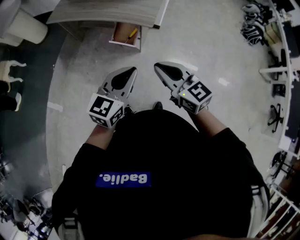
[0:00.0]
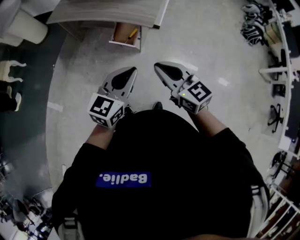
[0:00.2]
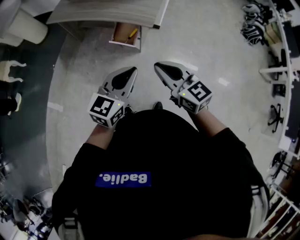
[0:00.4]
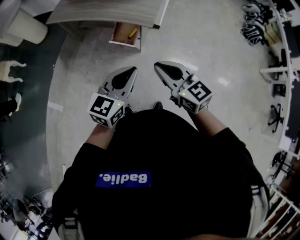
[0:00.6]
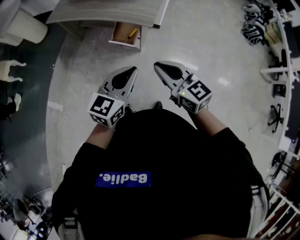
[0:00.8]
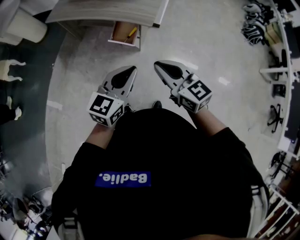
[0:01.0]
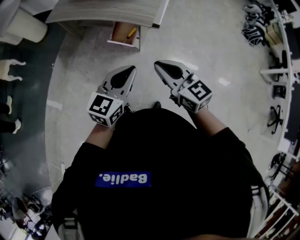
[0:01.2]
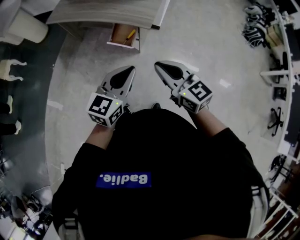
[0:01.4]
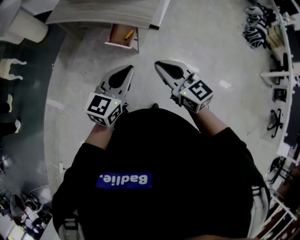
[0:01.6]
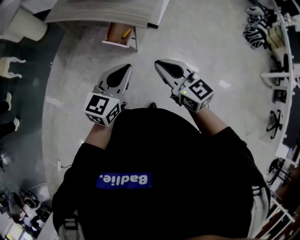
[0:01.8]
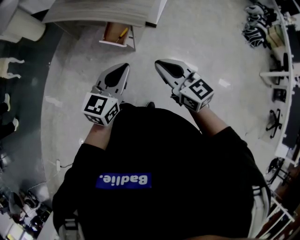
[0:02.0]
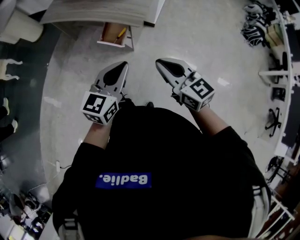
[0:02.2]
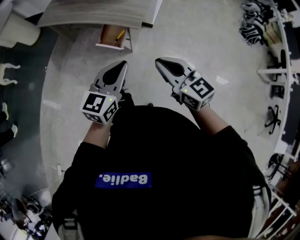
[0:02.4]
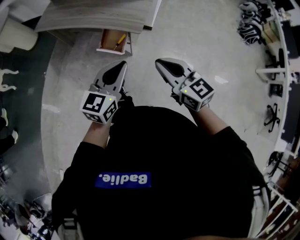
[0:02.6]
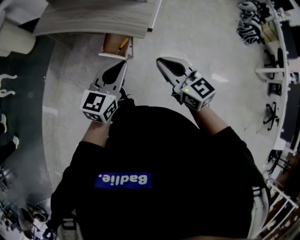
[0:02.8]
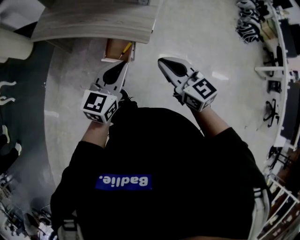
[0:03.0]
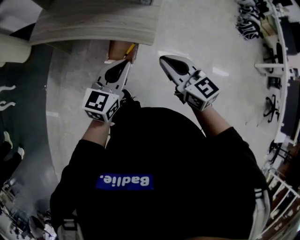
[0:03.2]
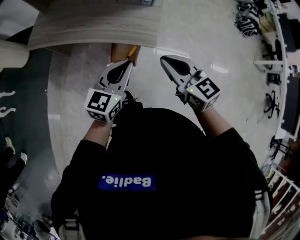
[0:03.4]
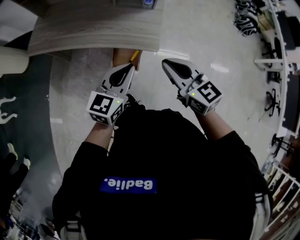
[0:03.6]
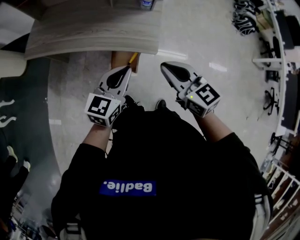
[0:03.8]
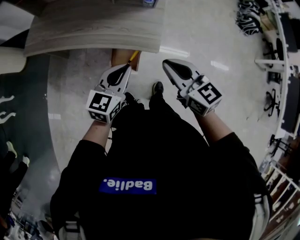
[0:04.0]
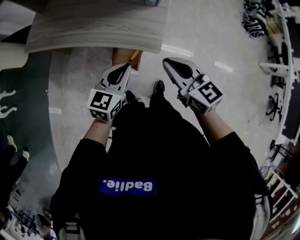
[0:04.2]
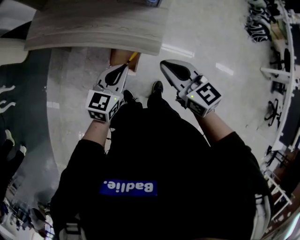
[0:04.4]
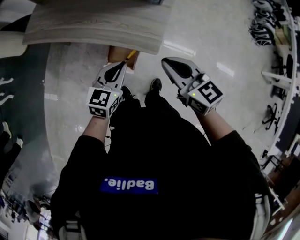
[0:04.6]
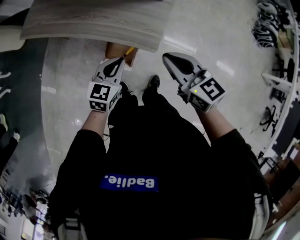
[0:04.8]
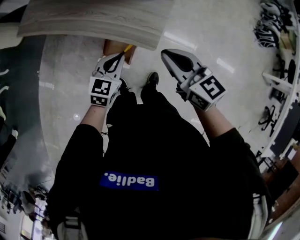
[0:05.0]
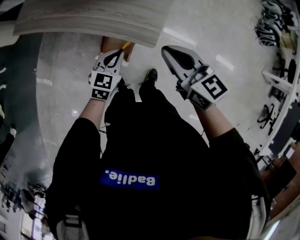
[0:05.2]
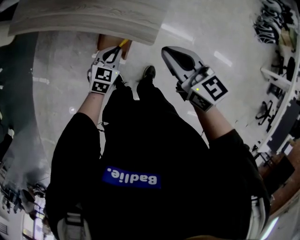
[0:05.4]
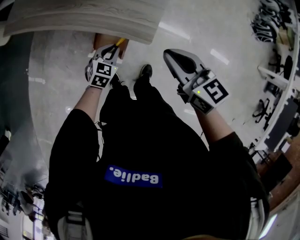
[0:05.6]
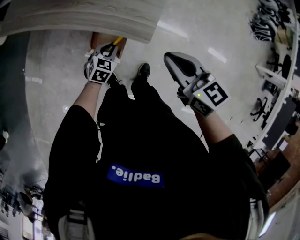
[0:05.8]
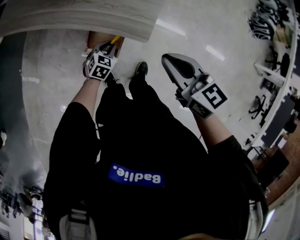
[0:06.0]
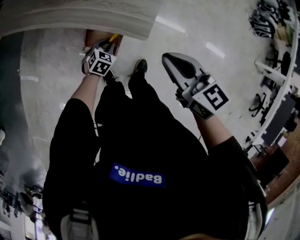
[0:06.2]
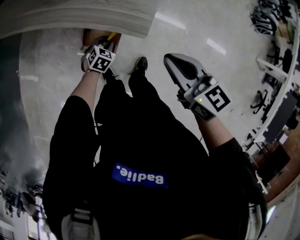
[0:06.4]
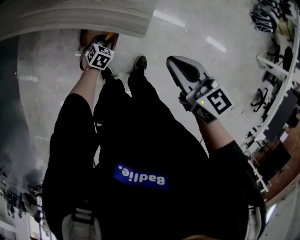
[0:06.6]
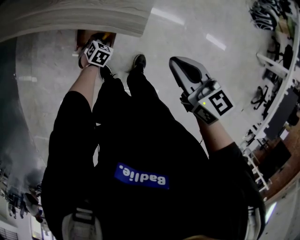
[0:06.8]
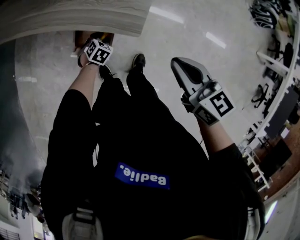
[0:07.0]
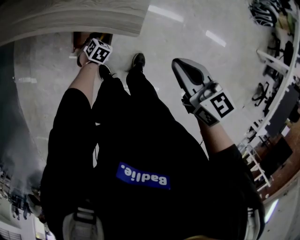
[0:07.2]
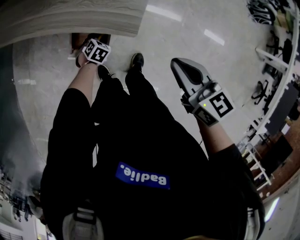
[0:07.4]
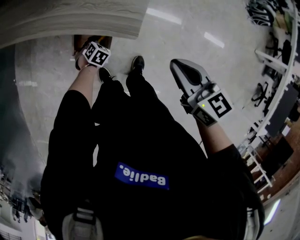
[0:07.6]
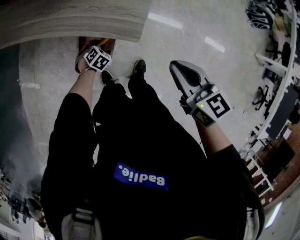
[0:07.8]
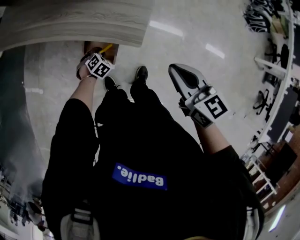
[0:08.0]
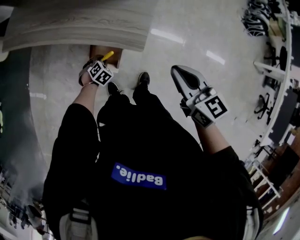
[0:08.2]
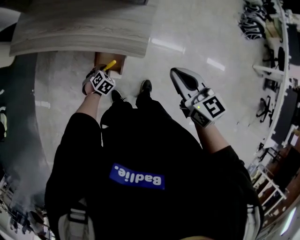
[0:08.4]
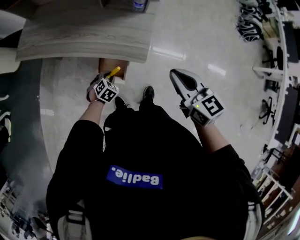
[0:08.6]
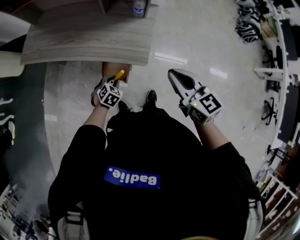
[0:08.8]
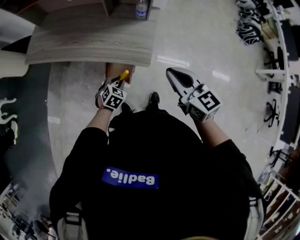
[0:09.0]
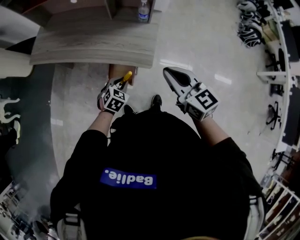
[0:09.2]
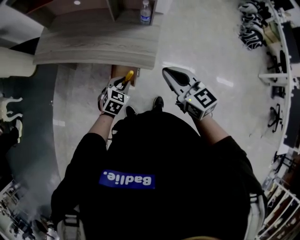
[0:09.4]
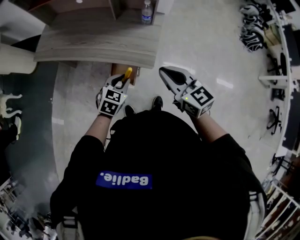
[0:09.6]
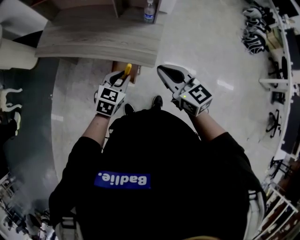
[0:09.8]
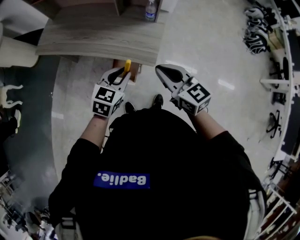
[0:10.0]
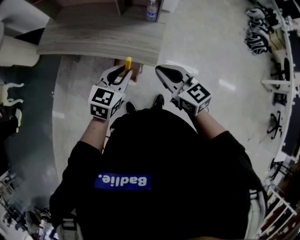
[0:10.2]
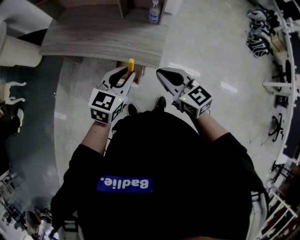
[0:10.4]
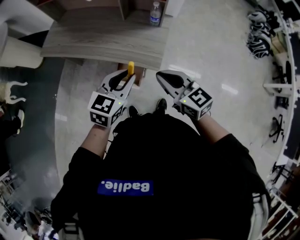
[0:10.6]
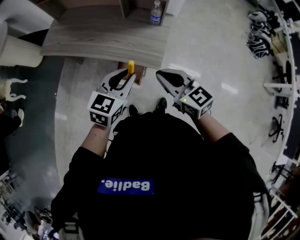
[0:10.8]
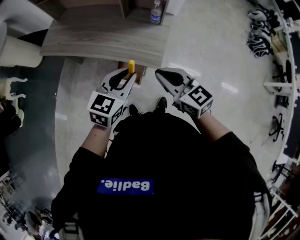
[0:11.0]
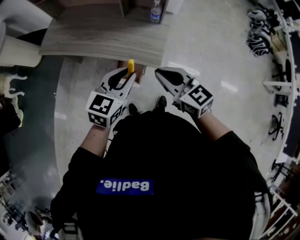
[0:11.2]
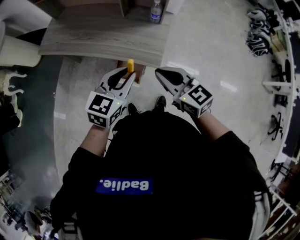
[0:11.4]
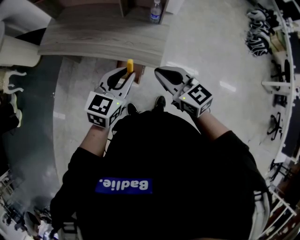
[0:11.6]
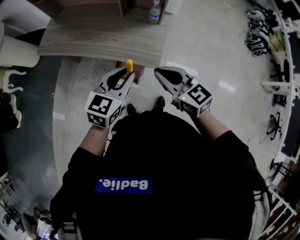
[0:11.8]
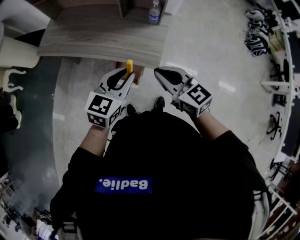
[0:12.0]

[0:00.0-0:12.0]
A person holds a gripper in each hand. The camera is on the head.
0:00.0 to 0:01.6: The right gripper heads to the right, covering some 5 cm.
0:01.6 to 0:03.0: The two grippers go some 20 cm forward.
0:03.0 to 0:04.4: The left gripper is displaced forward and downward by roughly 15 cm, while the right gripper moves forward, about 15 cm.
0:04.4 to 0:06.0: The left gripper is displaced downward by about 30 cm, and turns by roughly 30 degrees. Meanwhile the right gripper heads downward, covering about 10 cm.
0:06.0 to 0:07.6: The left gripper heads downward, covering some 10 cm, and turns by about 20 degrees, while the right gripper moves approximately 5 cm.
0:07.6 to 0:09.0: The right gripper is displaced upward by roughly 10 cm. The left gripper goes some 20 cm upward.
0:09.0 to 0:10.4: The right gripper goes roughly 5 cm to the left. Meanwhile the left gripper goes approximately 25 cm upward, and turns by approximately 30 degrees.
0:10.4 to 0:12.0: The grippers make only small movements.

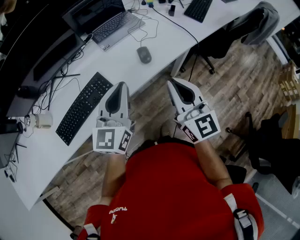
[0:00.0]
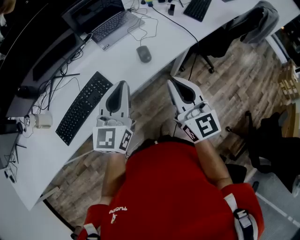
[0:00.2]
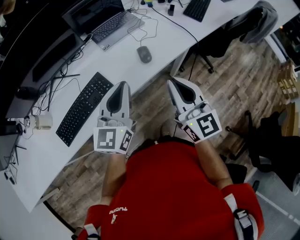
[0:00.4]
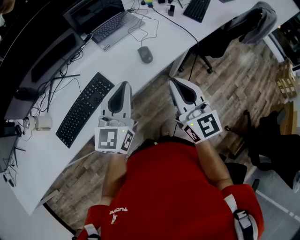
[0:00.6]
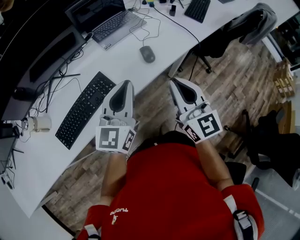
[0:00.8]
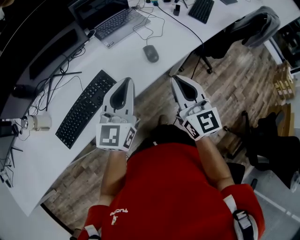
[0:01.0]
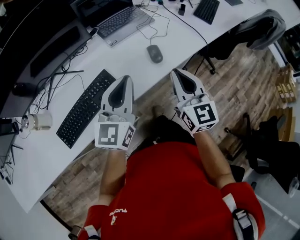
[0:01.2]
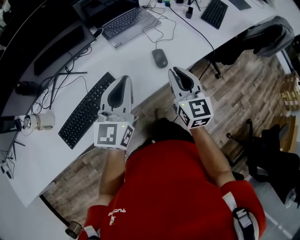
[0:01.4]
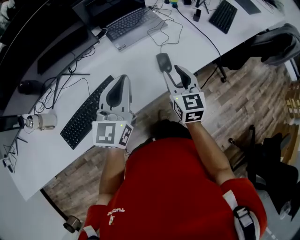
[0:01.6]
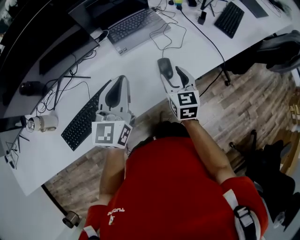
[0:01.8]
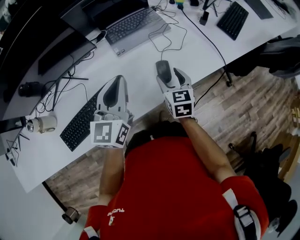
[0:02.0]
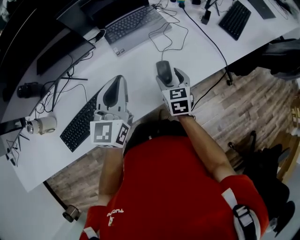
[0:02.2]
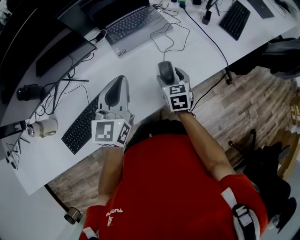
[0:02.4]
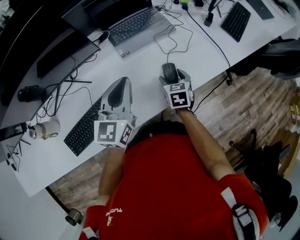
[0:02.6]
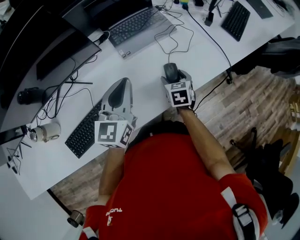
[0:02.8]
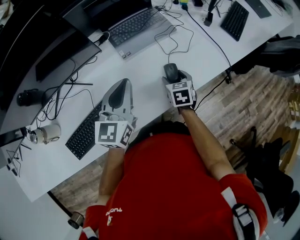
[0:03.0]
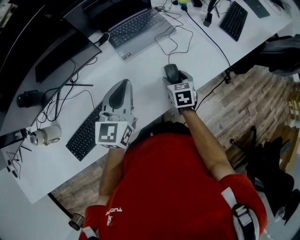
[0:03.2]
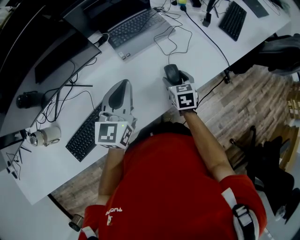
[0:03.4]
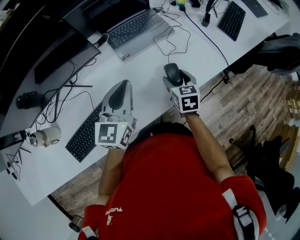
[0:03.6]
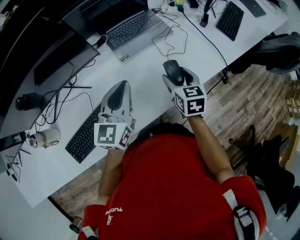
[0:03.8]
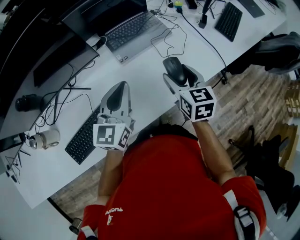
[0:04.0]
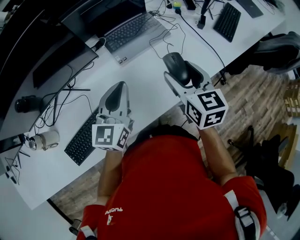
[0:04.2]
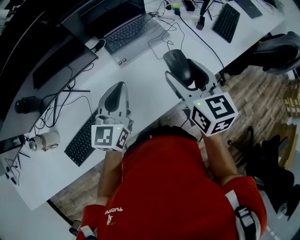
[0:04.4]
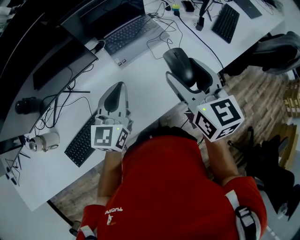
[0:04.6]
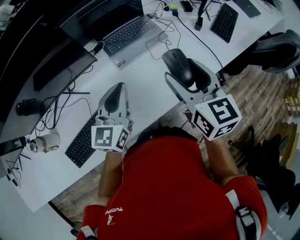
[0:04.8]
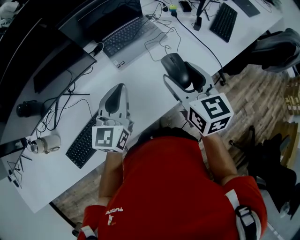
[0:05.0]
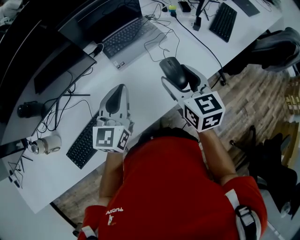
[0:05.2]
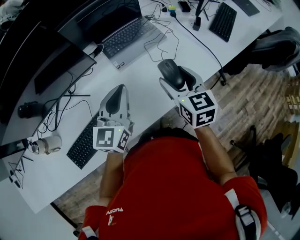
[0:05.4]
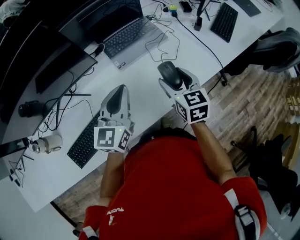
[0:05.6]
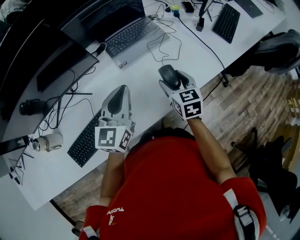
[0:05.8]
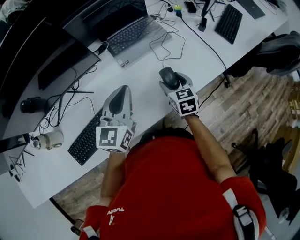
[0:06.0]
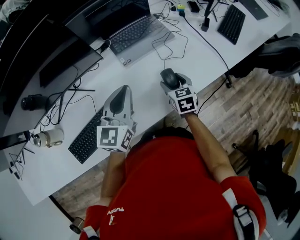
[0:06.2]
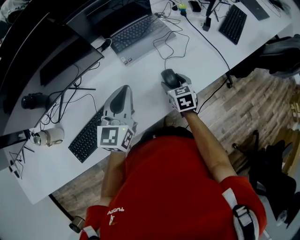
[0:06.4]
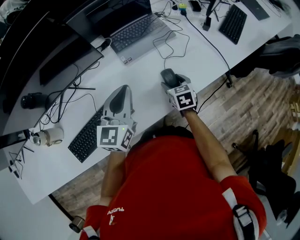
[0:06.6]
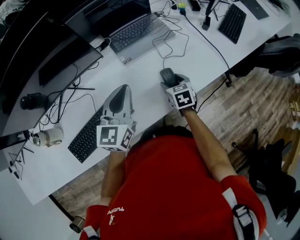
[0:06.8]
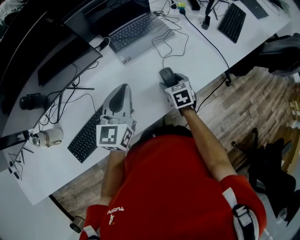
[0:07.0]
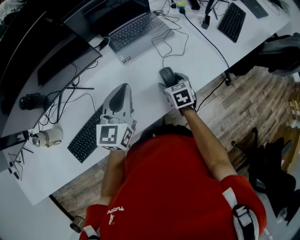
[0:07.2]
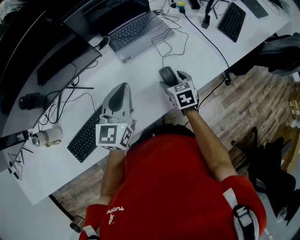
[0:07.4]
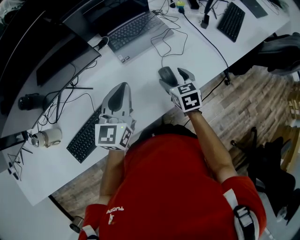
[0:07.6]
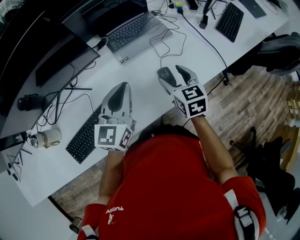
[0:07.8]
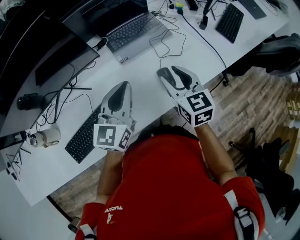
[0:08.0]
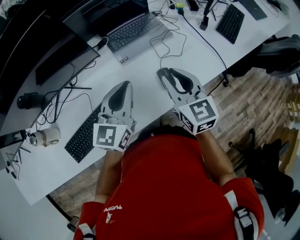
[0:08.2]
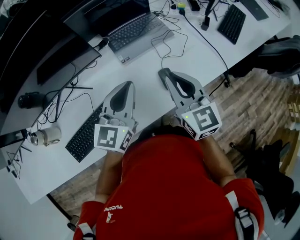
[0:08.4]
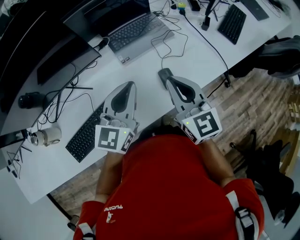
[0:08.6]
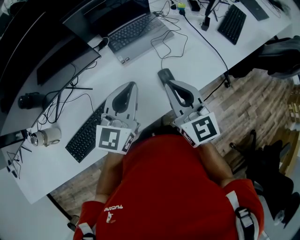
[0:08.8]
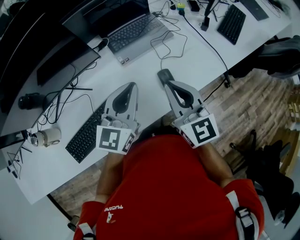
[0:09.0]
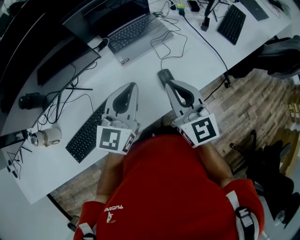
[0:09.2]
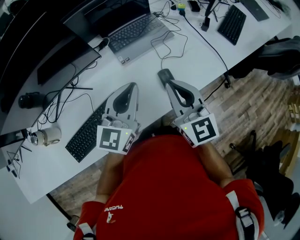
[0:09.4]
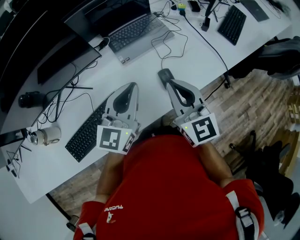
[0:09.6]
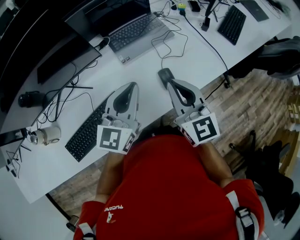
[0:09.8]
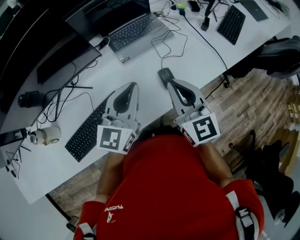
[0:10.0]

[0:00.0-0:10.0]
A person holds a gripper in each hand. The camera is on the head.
0:00.0 to 0:01.4: The left gripper is displaced forward and to the left by approximately 10 cm, while the right gripper goes approximately 15 cm forward and downward.
0:01.4 to 0:02.8: The right gripper shifts approximately 25 cm downward and forward, angles its fingers downward, by roughly 40 degrees, and opens up, while the left gripper shifts approximately 15 cm forward and downward.
0:02.8 to 0:04.2: The right gripper heads upward, covering roughly 20 cm, and turns by some 30 degrees.
0:04.2 to 0:05.8: The right gripper heads downward, covering roughly 10 cm.
0:05.8 to 0:07.2: The right gripper goes roughly 10 cm downward.
0:07.2 to 0:08.6: The left gripper shifts by about 5 cm, while the right gripper goes roughly 25 cm upward, angles its fingers upward, by roughly 40 degrees, and closes.
0:08.6 to 0:10.0: Both grippers stay put.

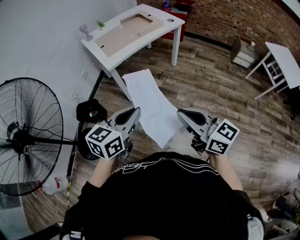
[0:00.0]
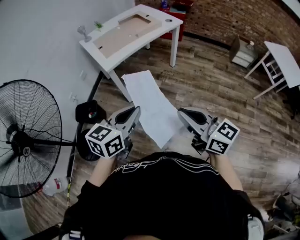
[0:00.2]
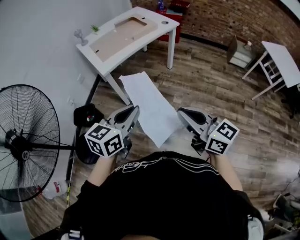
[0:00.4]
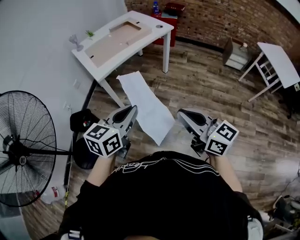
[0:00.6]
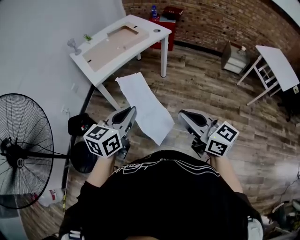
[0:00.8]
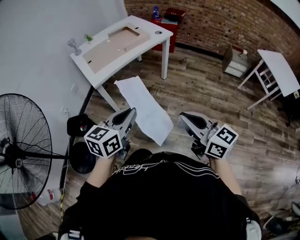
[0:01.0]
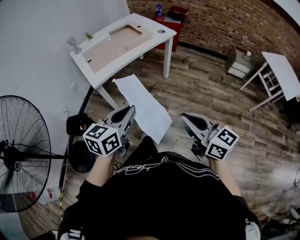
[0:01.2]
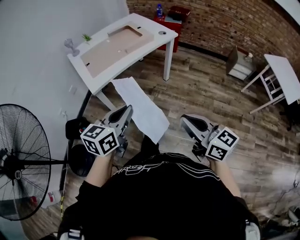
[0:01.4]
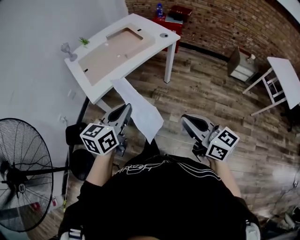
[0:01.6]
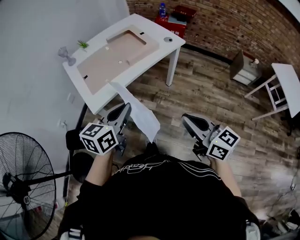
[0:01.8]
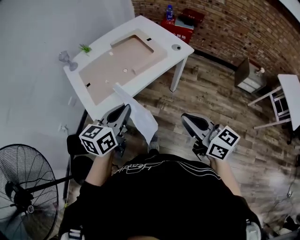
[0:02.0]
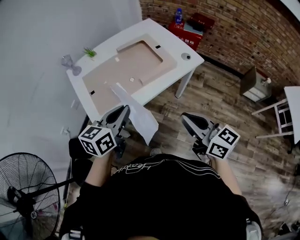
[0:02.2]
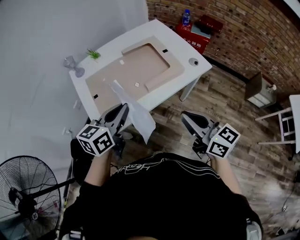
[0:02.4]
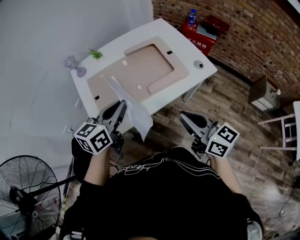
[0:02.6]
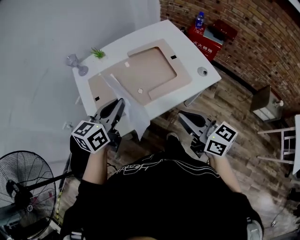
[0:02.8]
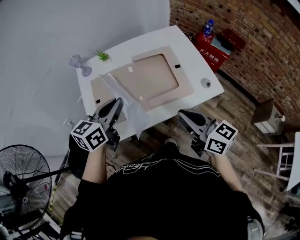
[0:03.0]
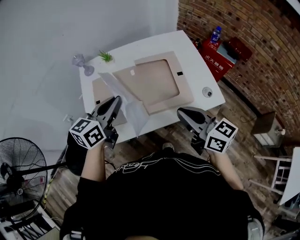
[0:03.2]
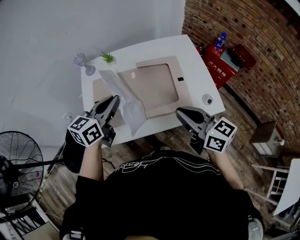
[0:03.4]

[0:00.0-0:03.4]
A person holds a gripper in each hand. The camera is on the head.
0:00.0 to 0:01.6: The left gripper is displaced forward by approximately 25 cm, while the right gripper goes about 20 cm forward and to the right.
0:01.6 to 0:03.4: The two grippers travel together, some 50 cm. The left gripper swivels roughly 20 degrees. The right gripper turns by some 30 degrees.
